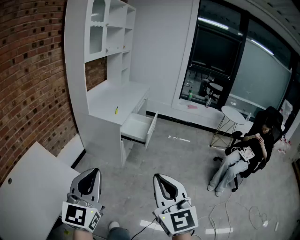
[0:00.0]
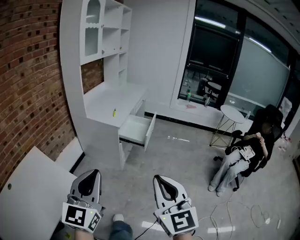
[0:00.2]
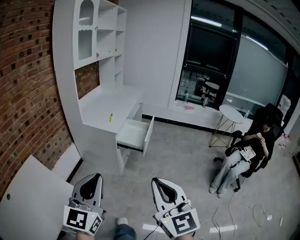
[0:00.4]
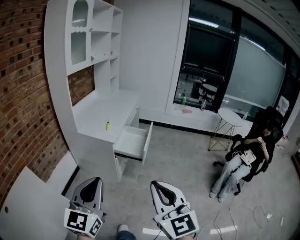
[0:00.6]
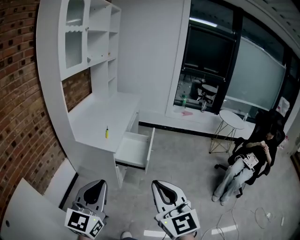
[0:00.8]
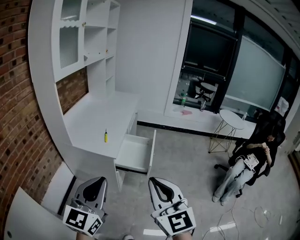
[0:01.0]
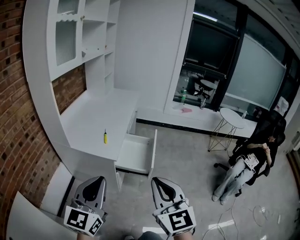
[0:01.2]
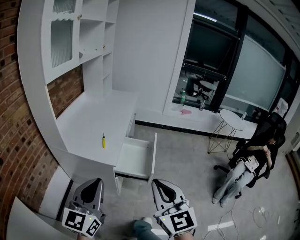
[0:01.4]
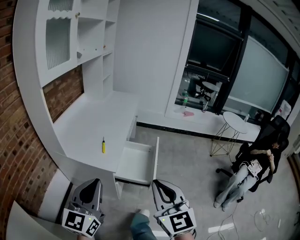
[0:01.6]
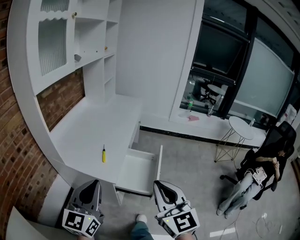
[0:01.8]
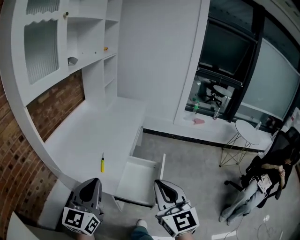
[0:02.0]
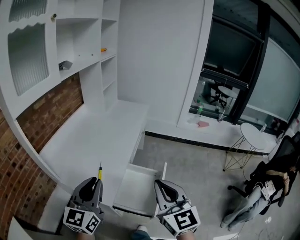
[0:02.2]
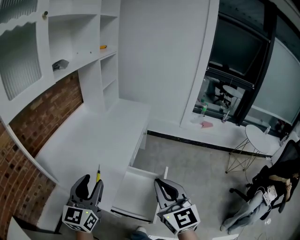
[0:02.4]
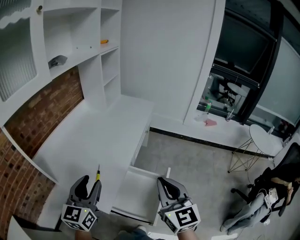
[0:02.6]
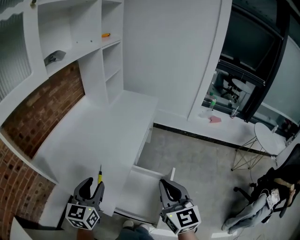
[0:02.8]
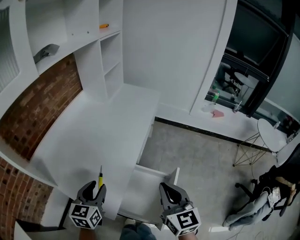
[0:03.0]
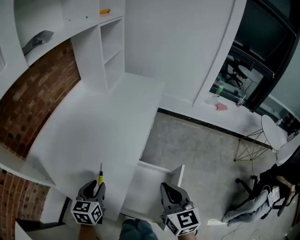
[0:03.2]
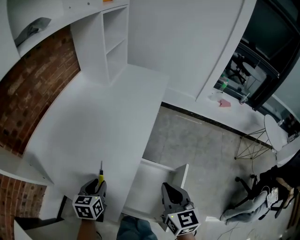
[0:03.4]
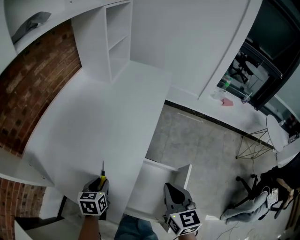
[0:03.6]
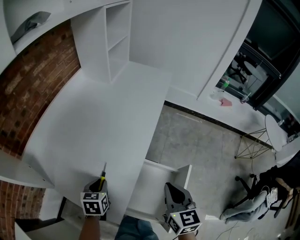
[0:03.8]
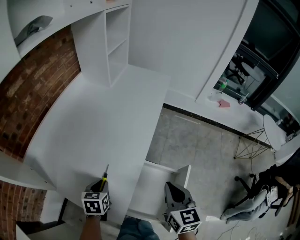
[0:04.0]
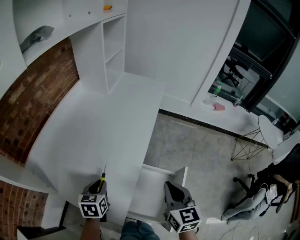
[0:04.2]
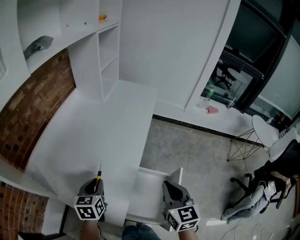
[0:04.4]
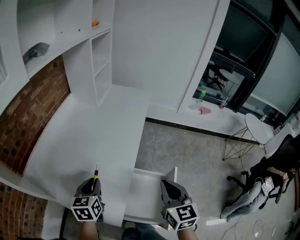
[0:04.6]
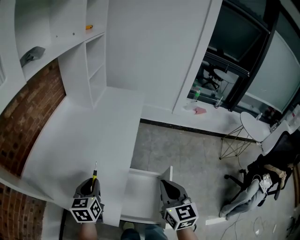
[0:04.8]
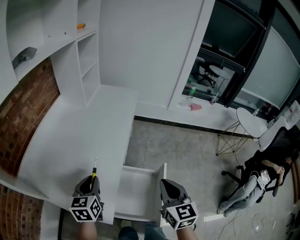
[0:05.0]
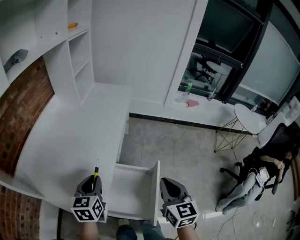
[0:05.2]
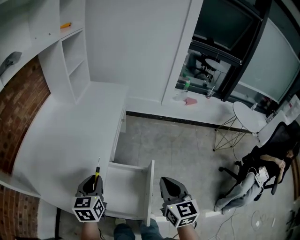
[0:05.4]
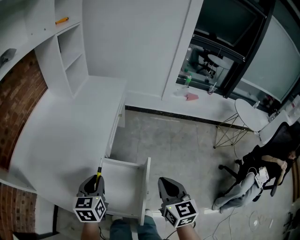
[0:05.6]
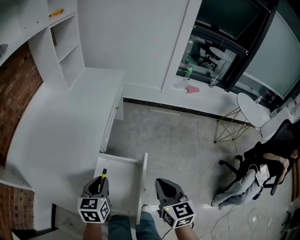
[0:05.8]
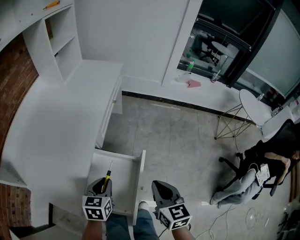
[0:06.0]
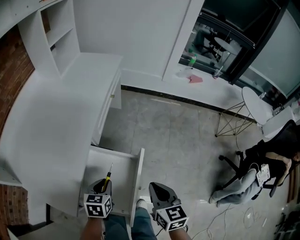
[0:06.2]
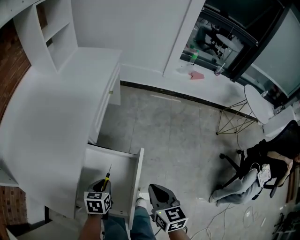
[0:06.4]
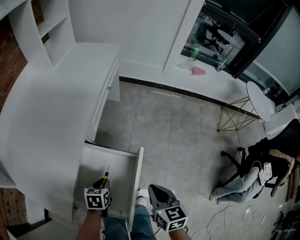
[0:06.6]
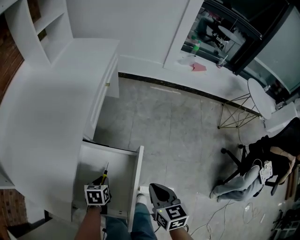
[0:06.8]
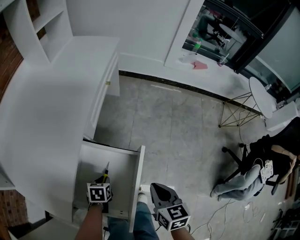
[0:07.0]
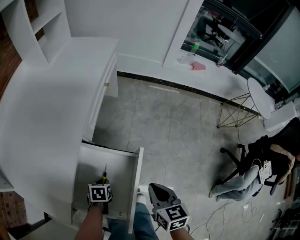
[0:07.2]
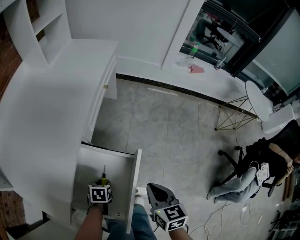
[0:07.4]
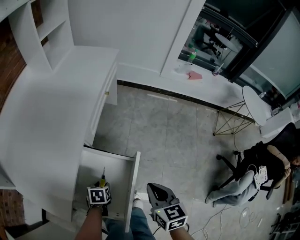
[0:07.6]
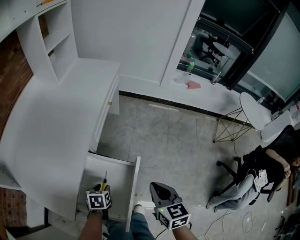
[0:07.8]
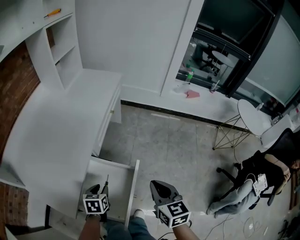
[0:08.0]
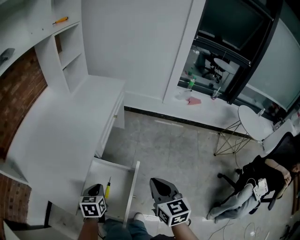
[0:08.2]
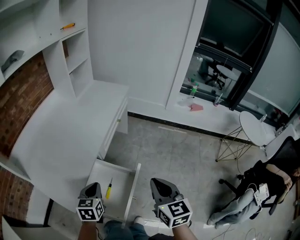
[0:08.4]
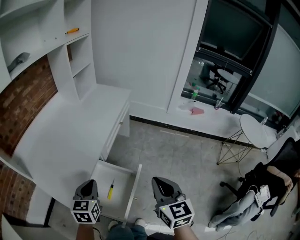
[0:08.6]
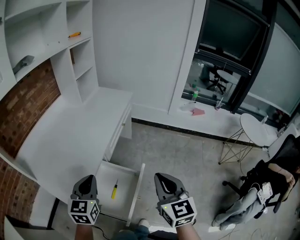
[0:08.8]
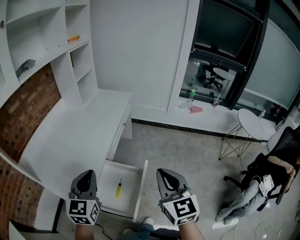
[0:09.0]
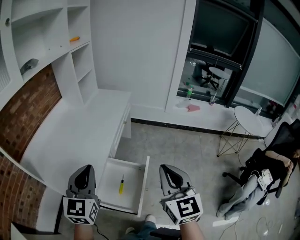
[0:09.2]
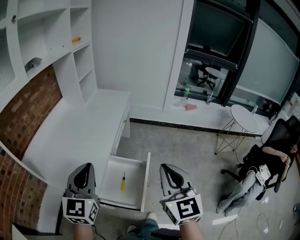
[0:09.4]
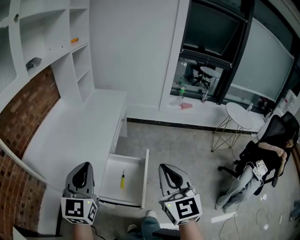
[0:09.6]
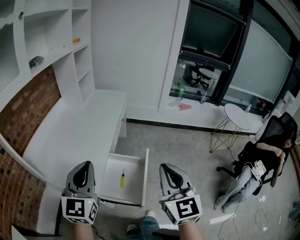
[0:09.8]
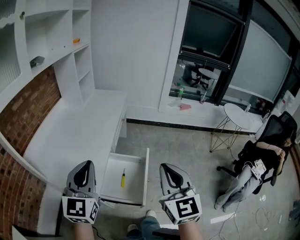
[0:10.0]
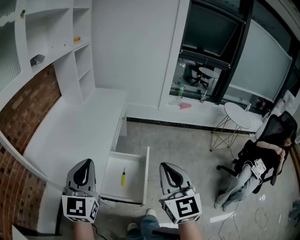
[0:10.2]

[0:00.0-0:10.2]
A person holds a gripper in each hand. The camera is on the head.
0:00.0 to 0:01.4: Both grippers move forward, approximately 40 cm.
0:01.4 to 0:03.0: The pair of grippers is taken forward, approximately 40 cm. The left gripper goes about 20 cm downward, turns by roughly 30 degrees, and opens its fingers.
0:03.0 to 0:04.4: The left gripper moves forward and downward, approximately 10 cm, and closes.
0:04.4 to 0:05.8: The two grippers go roughly 20 cm to the right.
0:05.8 to 0:07.2: The right gripper shifts about 15 cm downward, while the left gripper shifts about 30 cm downward, and tilts its fingers roughly 40 degrees downward.
0:07.2 to 0:08.8: The right gripper moves upward, some 25 cm, and rotates approximately 30 degrees. Meanwhile the left gripper shifts approximately 40 cm upward, tips its fingers upward by some 50 degrees, and opens and closes again.
0:08.8 to 0:10.2: The left gripper heads upward, backward and to the left, covering roughly 20 cm, and swivels about 20 degrees. Meanwhile the right gripper goes roughly 20 cm backward, upward and to the left.

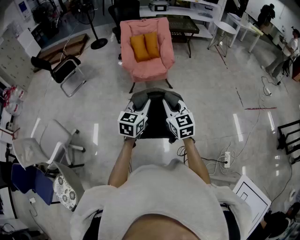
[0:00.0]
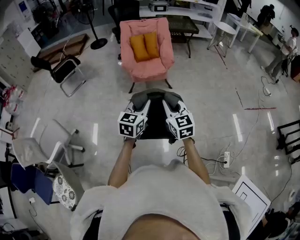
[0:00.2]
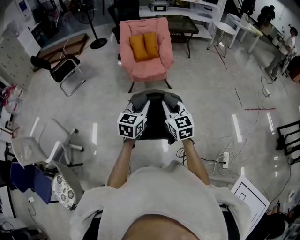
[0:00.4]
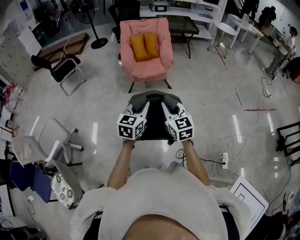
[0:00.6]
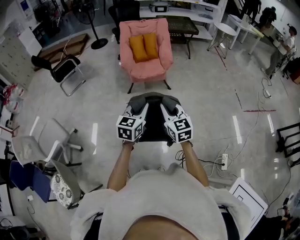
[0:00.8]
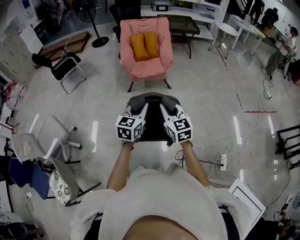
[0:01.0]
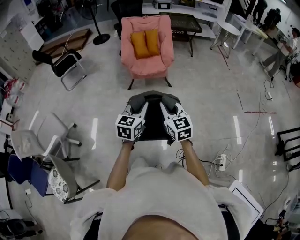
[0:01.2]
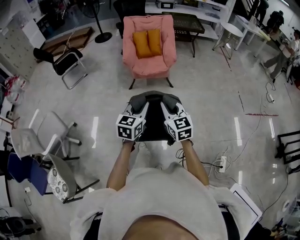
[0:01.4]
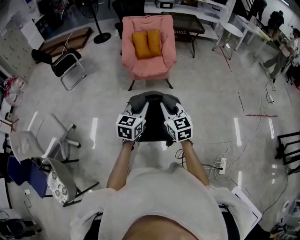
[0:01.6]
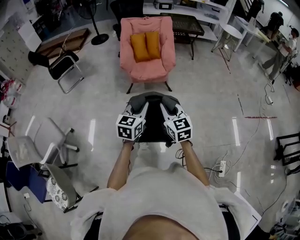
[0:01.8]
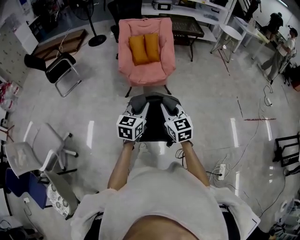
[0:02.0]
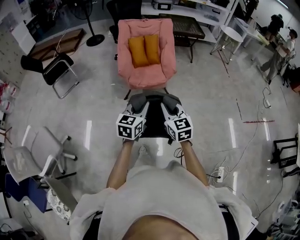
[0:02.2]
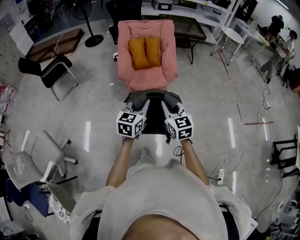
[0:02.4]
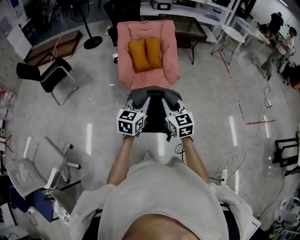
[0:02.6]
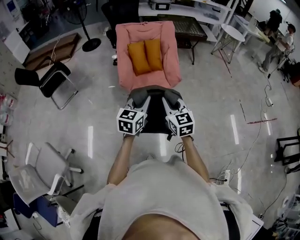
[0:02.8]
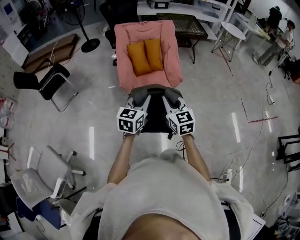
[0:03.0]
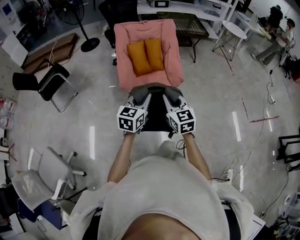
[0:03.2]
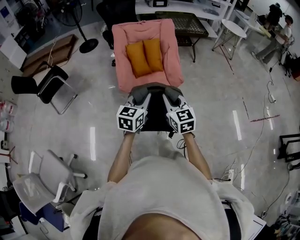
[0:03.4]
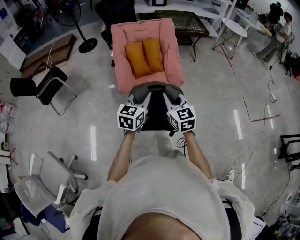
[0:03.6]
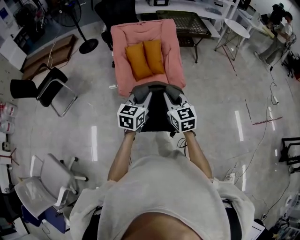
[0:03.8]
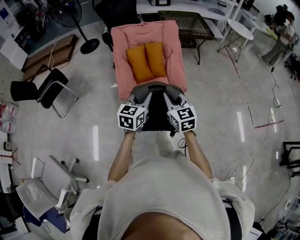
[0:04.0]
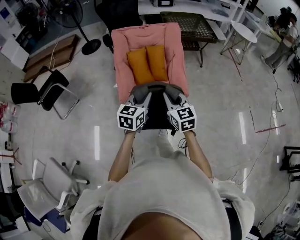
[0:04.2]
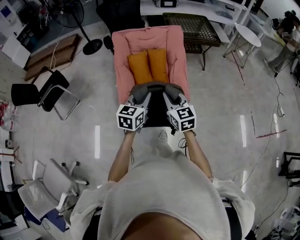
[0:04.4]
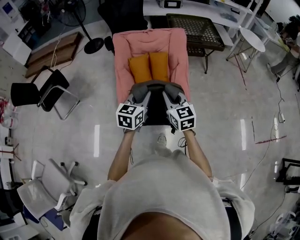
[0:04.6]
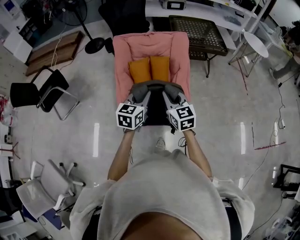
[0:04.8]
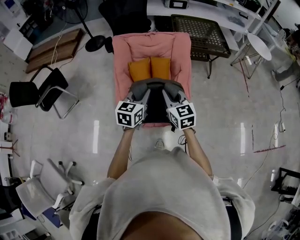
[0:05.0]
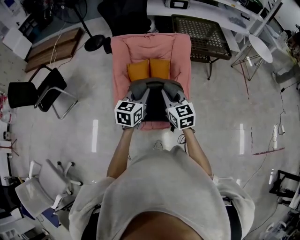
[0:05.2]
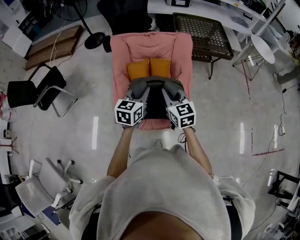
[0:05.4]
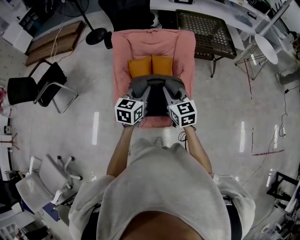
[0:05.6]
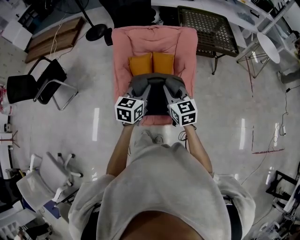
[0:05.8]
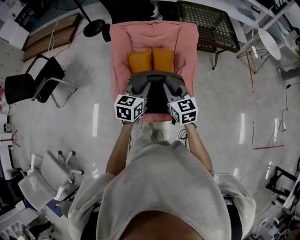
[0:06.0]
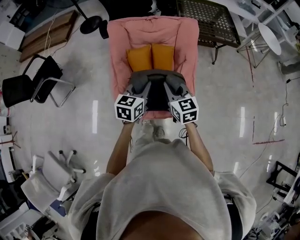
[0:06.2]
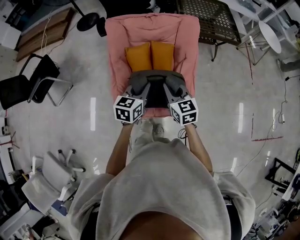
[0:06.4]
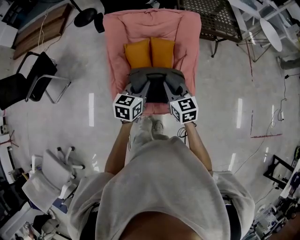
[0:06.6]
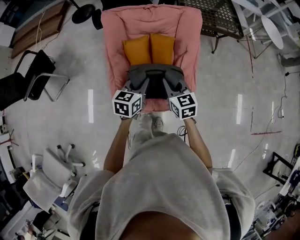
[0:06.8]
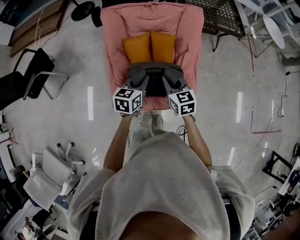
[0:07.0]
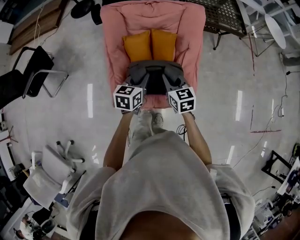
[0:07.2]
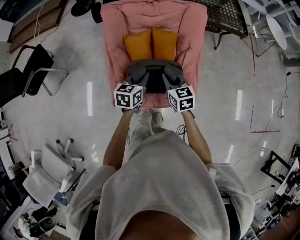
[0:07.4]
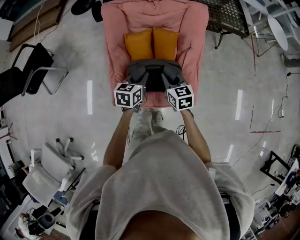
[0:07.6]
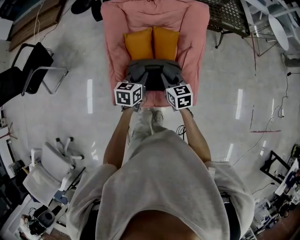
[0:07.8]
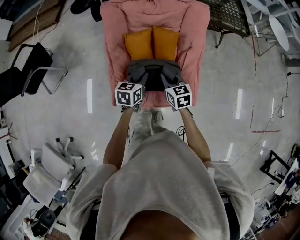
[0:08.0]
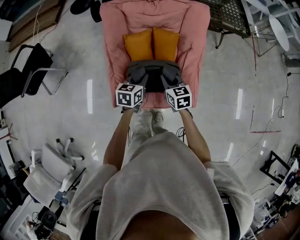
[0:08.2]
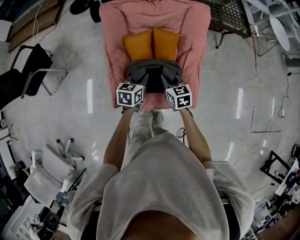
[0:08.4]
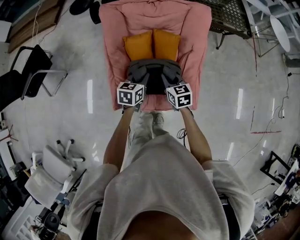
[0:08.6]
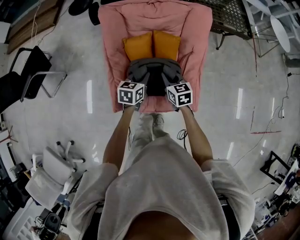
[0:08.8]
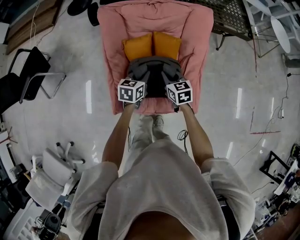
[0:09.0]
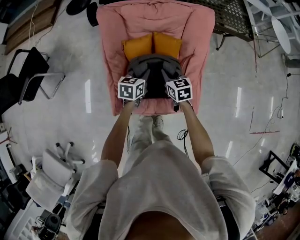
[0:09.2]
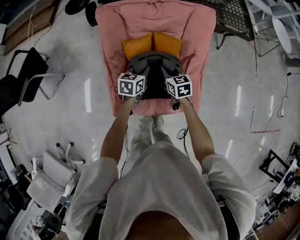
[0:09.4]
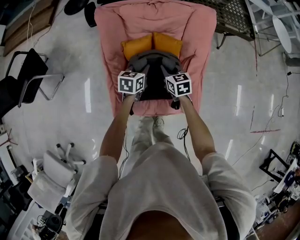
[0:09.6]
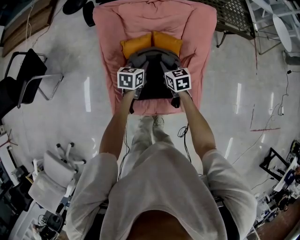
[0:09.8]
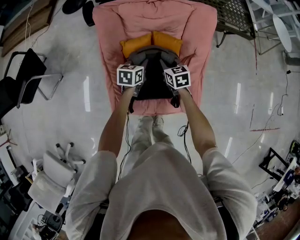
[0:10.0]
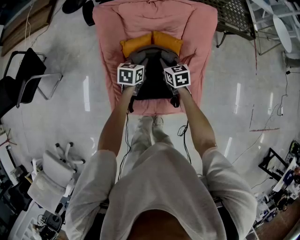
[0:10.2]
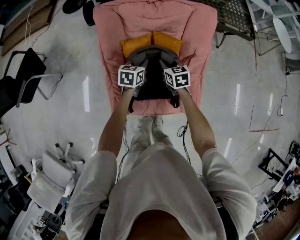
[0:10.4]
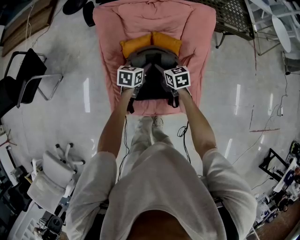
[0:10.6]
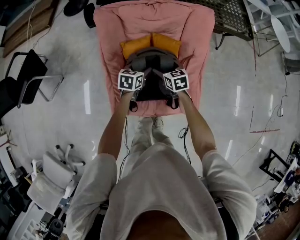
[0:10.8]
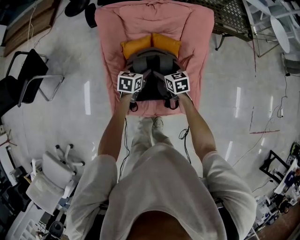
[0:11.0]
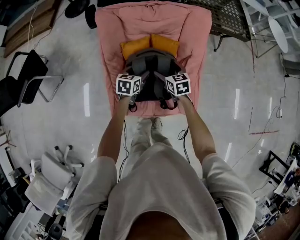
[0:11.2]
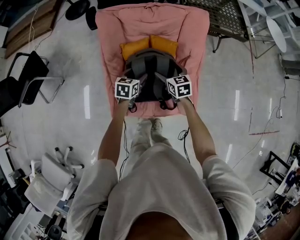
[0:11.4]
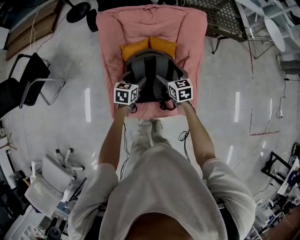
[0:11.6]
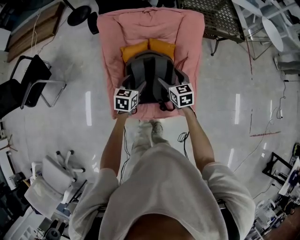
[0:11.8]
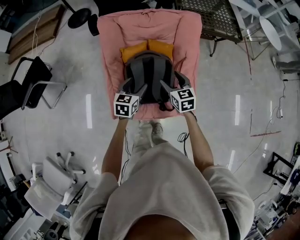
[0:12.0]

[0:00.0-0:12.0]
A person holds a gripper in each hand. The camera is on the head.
0:00.0 to 0:01.6: The left gripper moves approximately 5 cm. Meanwhile the right gripper moves about 5 cm.
0:01.6 to 0:03.0: The grippers both shift forward by about 35 cm.
0:03.0 to 0:04.4: The two grippers go approximately 30 cm forward.
0:04.4 to 0:06.0: The two grippers go roughly 25 cm forward.
0:06.0 to 0:07.6: Both grippers move downward and forward, about 15 cm.
0:07.6 to 0:09.0: The two grippers go about 10 cm forward and downward.
0:09.0 to 0:10.4: The grippers both shift forward by approximately 10 cm.
0:10.4 to 0:12.0: The left gripper heads backward and upward, covering about 20 cm, and opens its fingers; the right gripper heads backward, upward and to the right, covering roughly 20 cm, and opens.

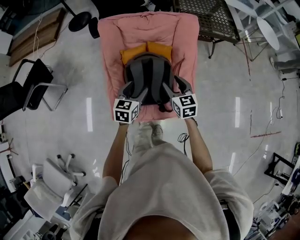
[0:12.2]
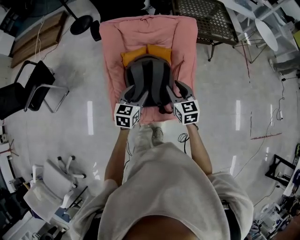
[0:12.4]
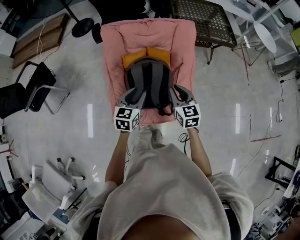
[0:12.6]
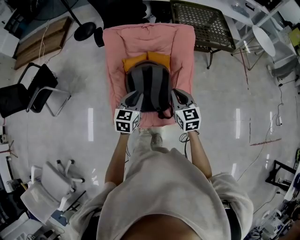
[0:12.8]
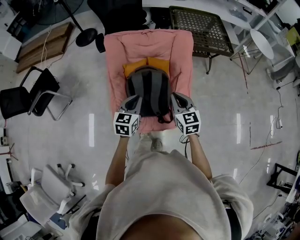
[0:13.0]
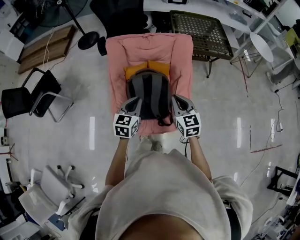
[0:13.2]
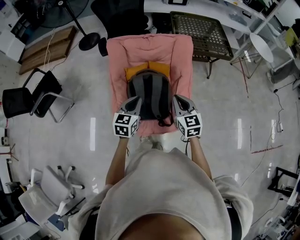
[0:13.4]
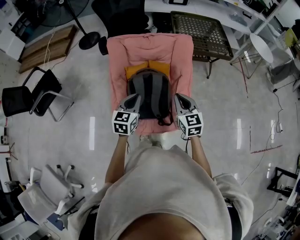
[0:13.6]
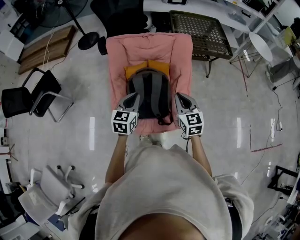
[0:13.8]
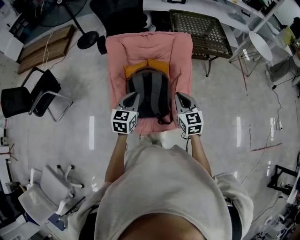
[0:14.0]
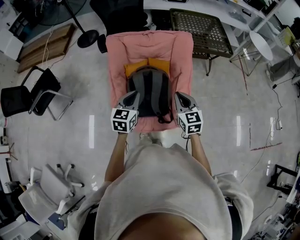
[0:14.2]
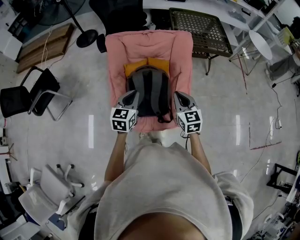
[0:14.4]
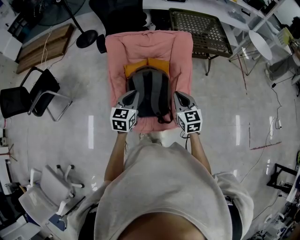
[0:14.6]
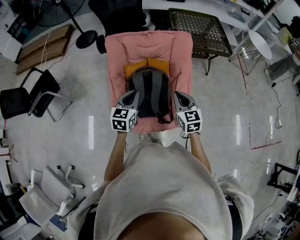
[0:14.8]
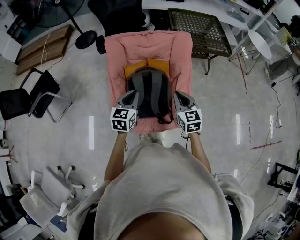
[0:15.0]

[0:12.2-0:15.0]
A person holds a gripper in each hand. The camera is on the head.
0:12.2 to 0:13.6: The right gripper goes about 10 cm upward and backward, and closes. Meanwhile the left gripper is displaced upward by some 10 cm, and closes its fingers.
0:13.6 to 0:15.0: The grippers stay close to where they were, moving slightly.
